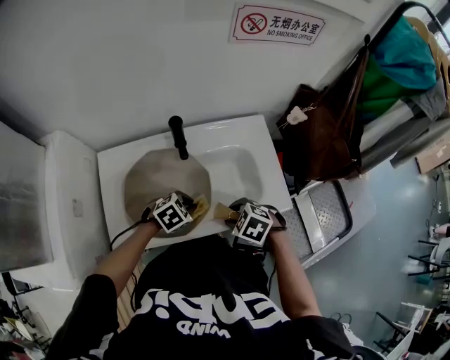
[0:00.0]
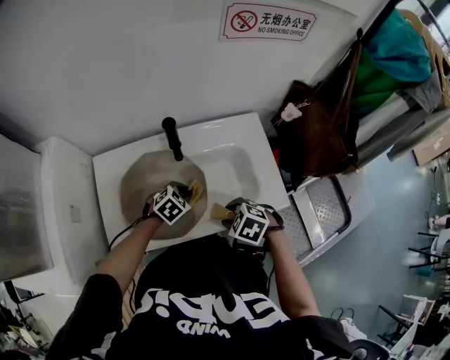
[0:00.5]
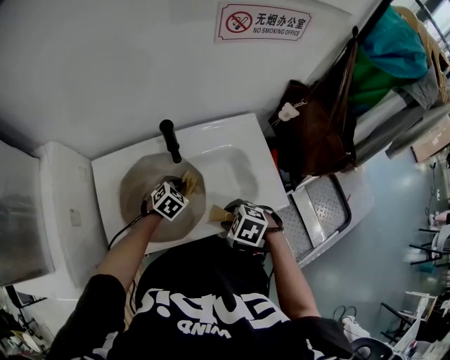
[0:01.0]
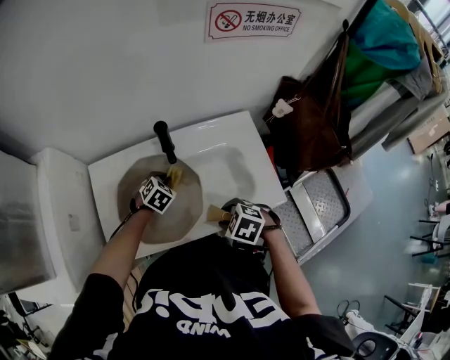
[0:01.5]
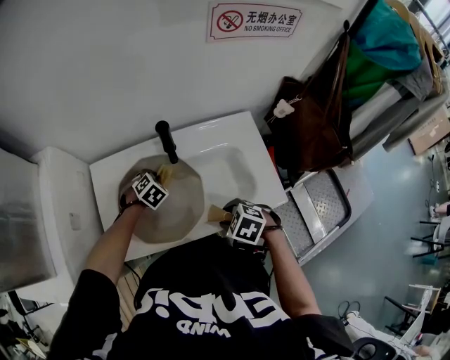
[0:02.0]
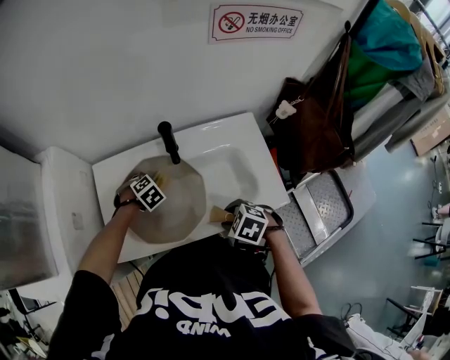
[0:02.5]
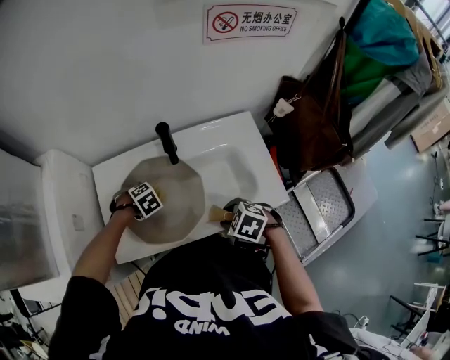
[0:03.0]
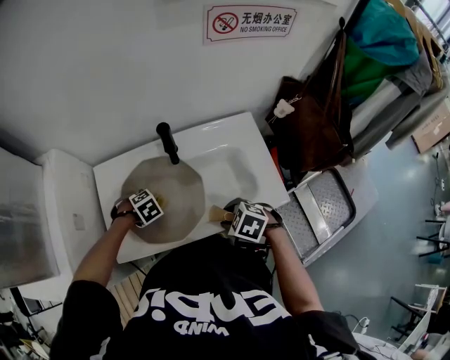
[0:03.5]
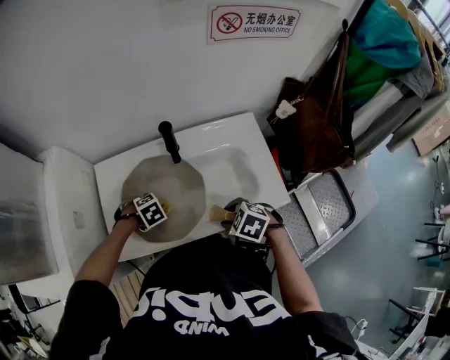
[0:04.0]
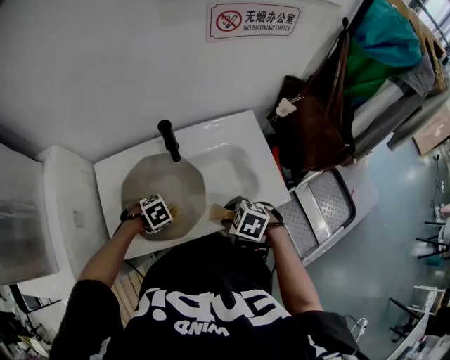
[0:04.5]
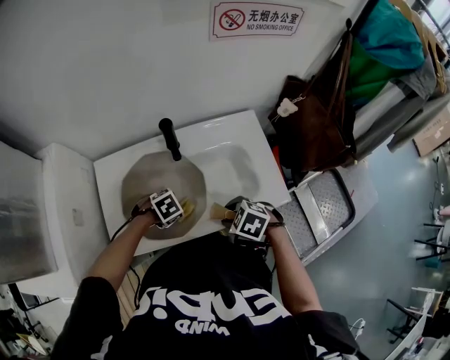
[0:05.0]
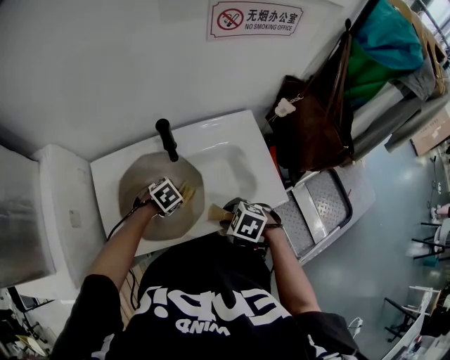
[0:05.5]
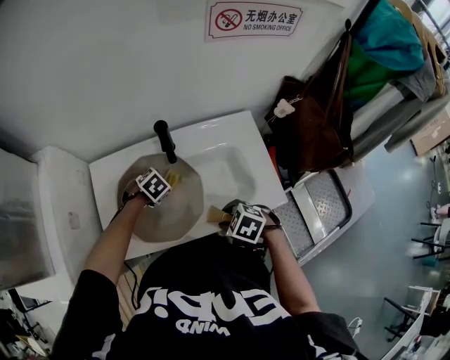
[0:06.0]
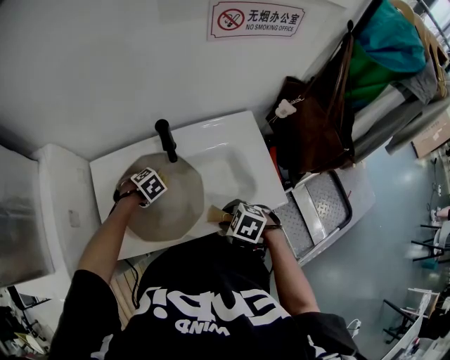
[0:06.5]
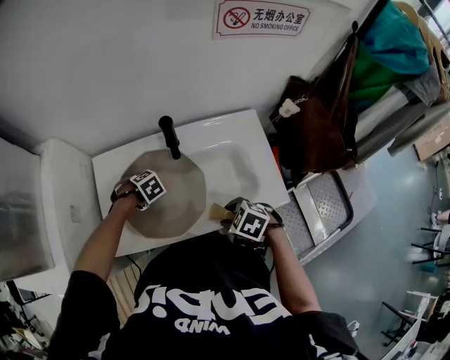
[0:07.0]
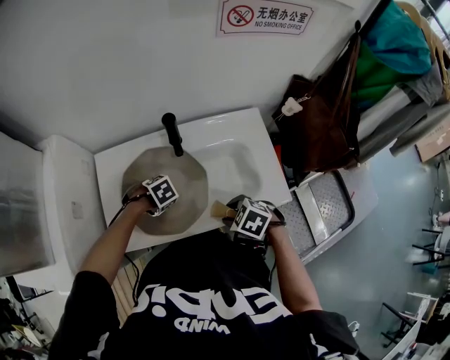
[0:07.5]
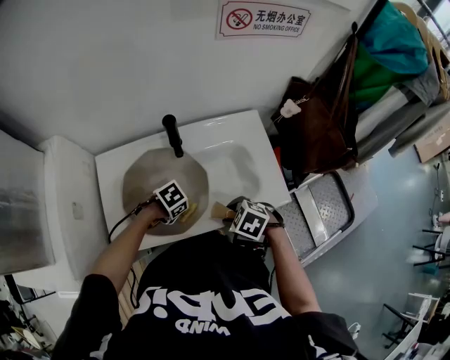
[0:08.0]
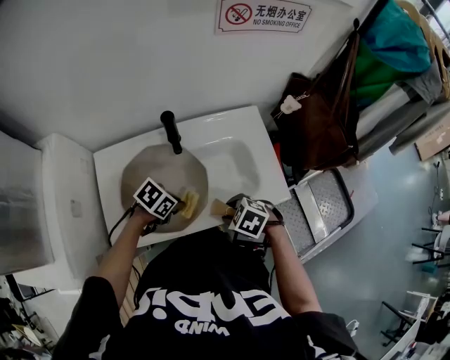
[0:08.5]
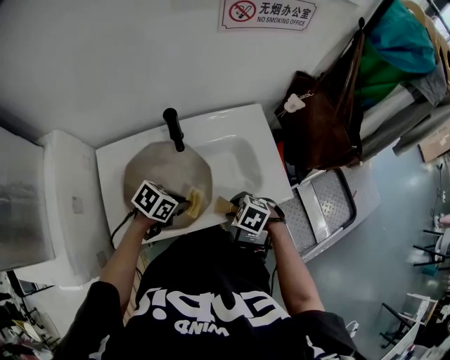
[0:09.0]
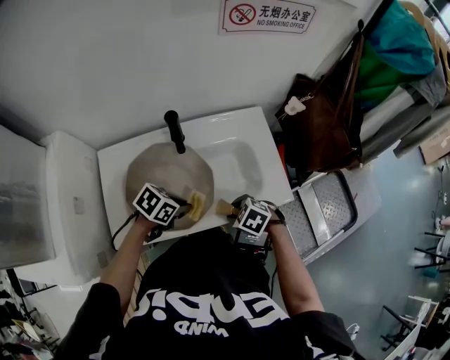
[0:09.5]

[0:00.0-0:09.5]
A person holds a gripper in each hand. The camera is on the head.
0:00.0 to 0:02.0: The left gripper moves approximately 15 cm, and turns by approximately 30 degrees.
0:02.0 to 0:04.0: The left gripper changes place by roughly 15 cm, and turns by some 30 degrees.
0:04.0 to 0:05.5: The left gripper ends up about 10 cm from where it was.
0:07.5 to 0:09.5: The left gripper ends up some 15 cm from where it was, and tilts its fingers some 30 degrees upward.

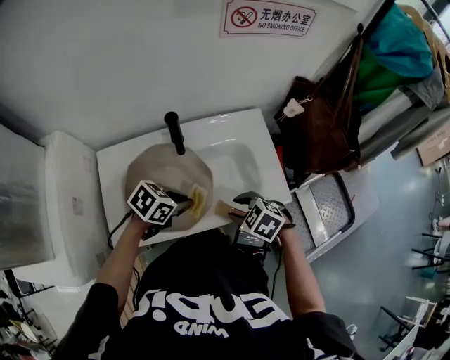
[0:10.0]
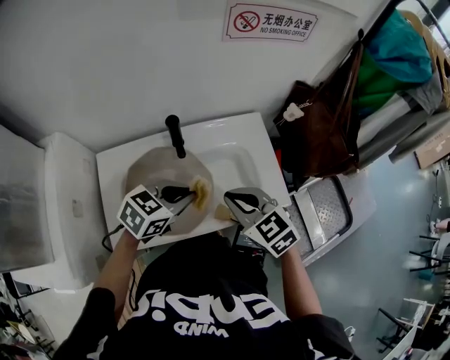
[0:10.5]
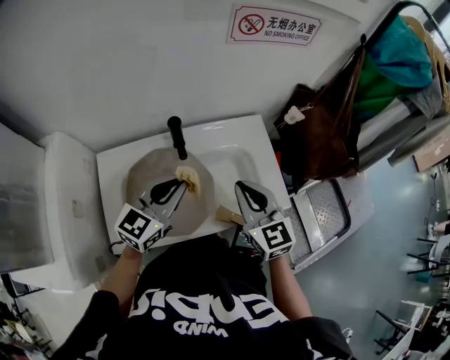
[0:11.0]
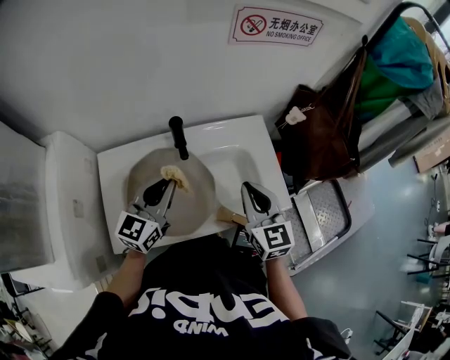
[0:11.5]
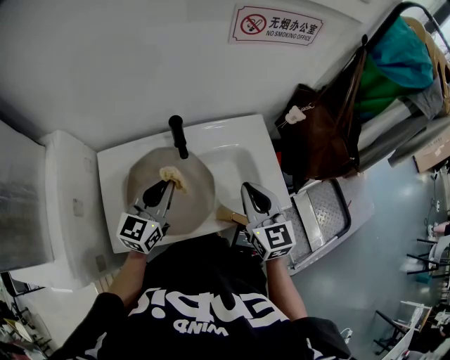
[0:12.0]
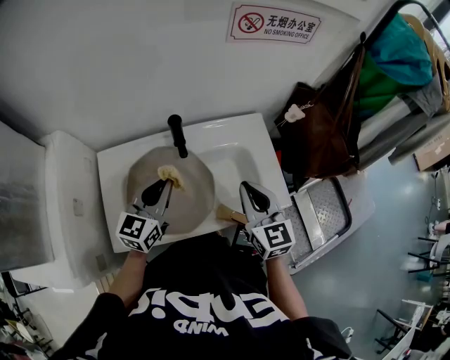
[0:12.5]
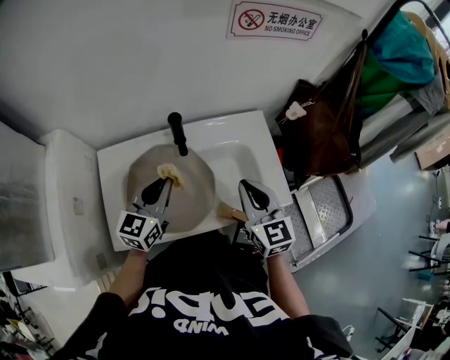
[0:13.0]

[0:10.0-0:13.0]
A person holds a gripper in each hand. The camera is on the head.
0:10.0 to 0:11.5: The two grippers go roughly 15 cm upward. The left gripper tips its fingers upward by approximately 40 degrees; the right gripper angles its fingers upward, by roughly 50 degrees, and closes.
0:11.5 to 0:13.0: The grippers move only a little.

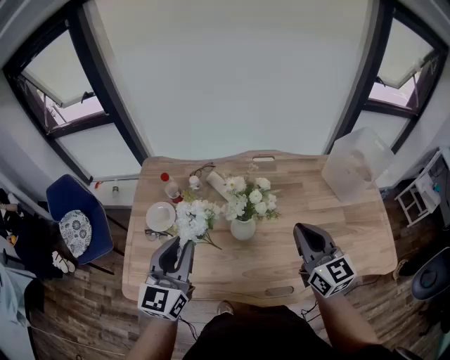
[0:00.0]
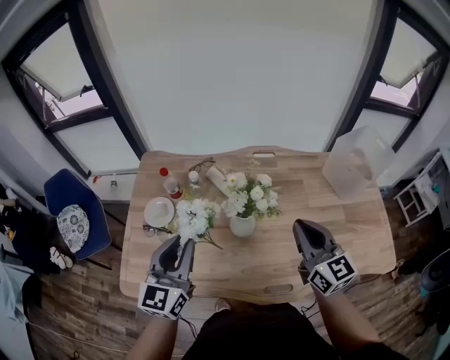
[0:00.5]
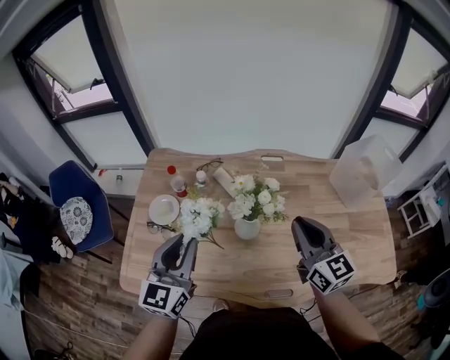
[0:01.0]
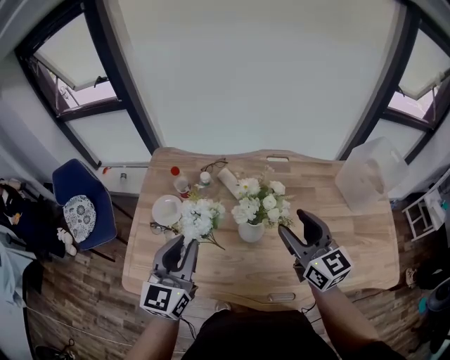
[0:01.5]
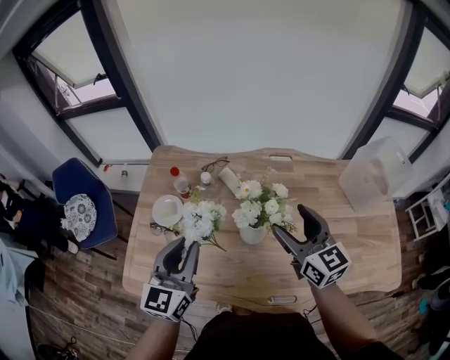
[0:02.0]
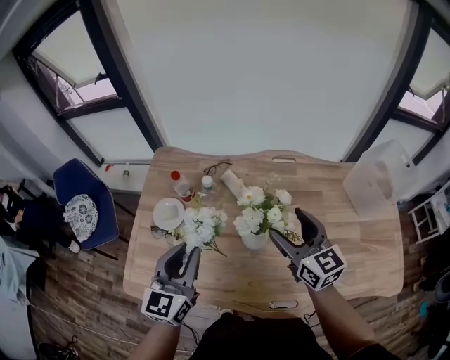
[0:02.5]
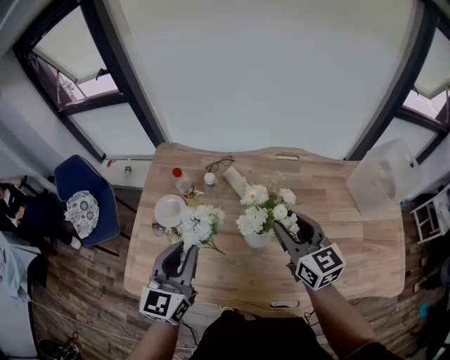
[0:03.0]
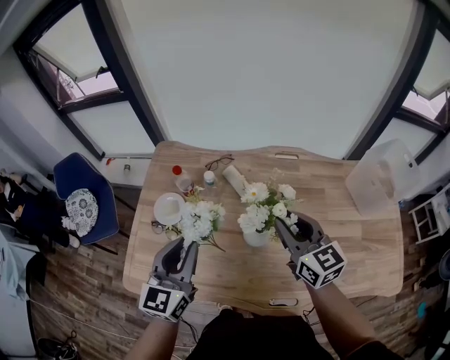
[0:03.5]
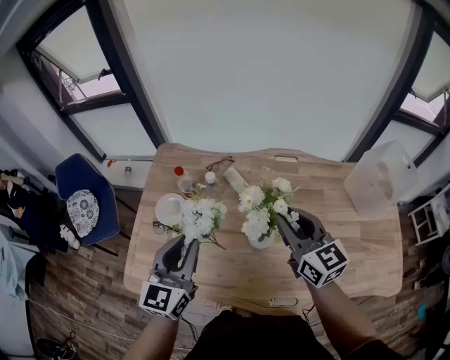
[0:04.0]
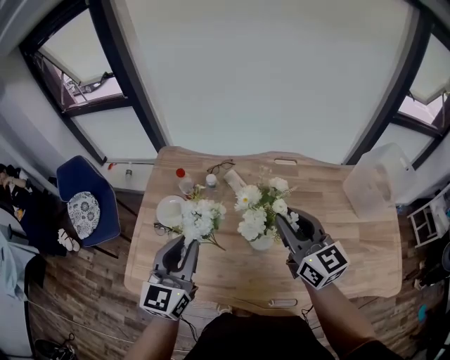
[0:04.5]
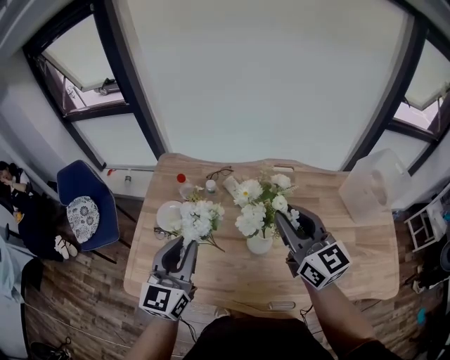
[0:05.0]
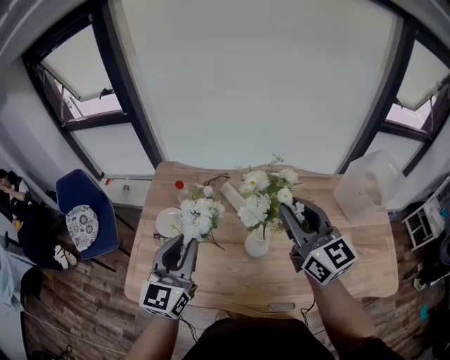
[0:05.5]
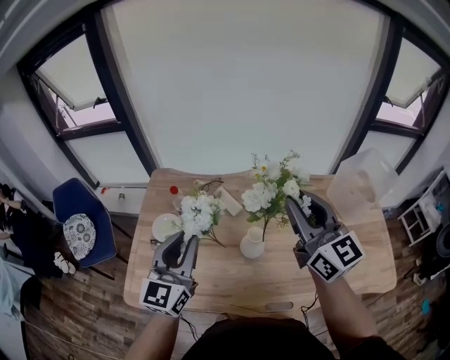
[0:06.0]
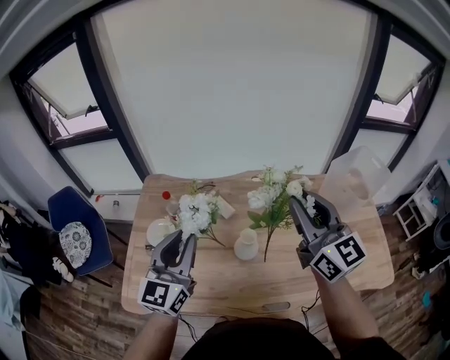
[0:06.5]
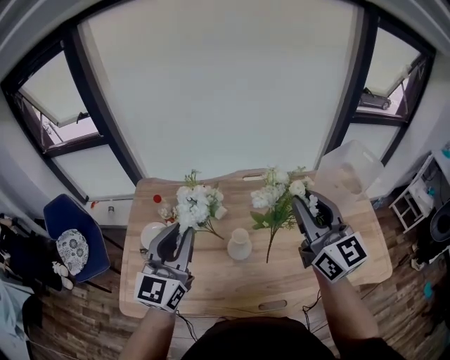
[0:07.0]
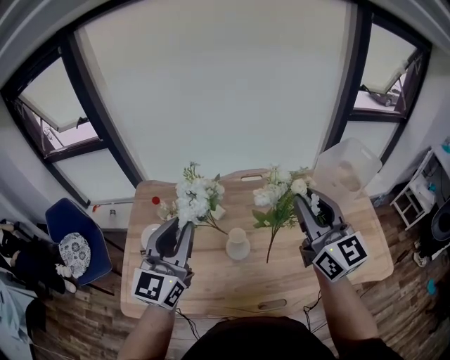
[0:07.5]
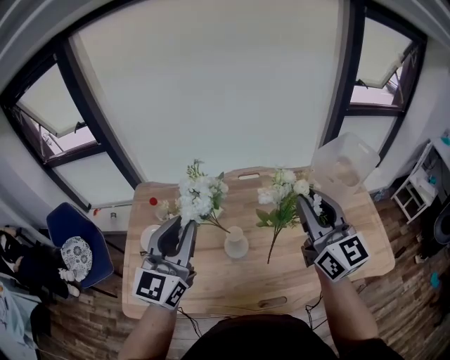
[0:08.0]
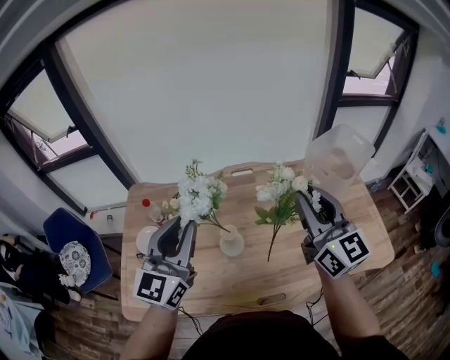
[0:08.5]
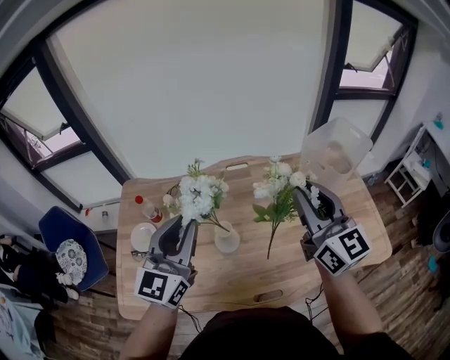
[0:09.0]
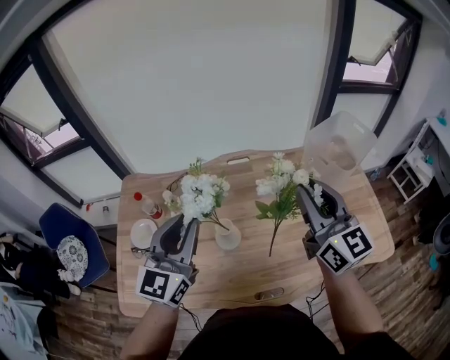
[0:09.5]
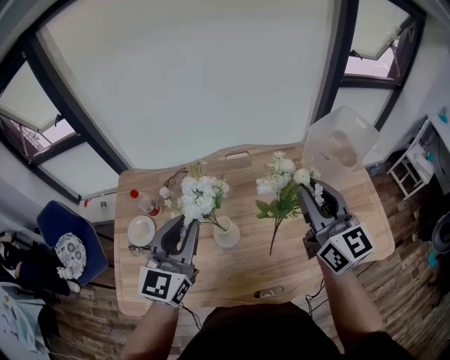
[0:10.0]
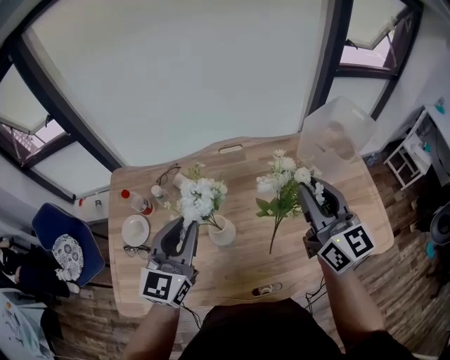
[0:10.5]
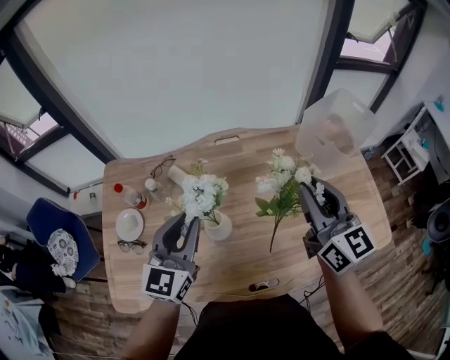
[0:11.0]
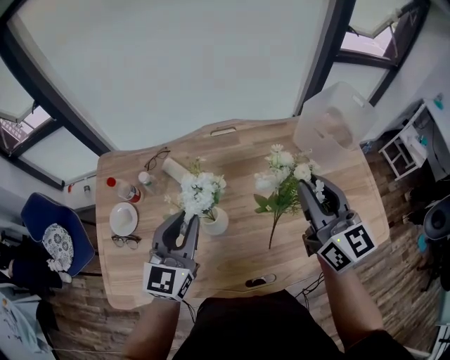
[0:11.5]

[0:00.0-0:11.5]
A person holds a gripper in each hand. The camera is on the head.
0:00.0 to 0:02.0: The right gripper is displaced forward and to the left by some 10 cm, and opens up.
0:02.0 to 0:04.0: The right gripper closes.
0:04.0 to 0:06.0: The right gripper moves upward, some 15 cm. Meanwhile the left gripper is displaced upward by about 5 cm.
0:06.0 to 0:07.5: The left gripper moves to the right and upward, some 10 cm. The right gripper travels to the right by about 10 cm.
0:07.5 to 0:09.5: The left gripper ends up about 5 cm from where it was.
0:09.5 to 0:11.5: The left gripper travels downward by roughly 10 cm; the right gripper heads downward, covering approximately 5 cm.

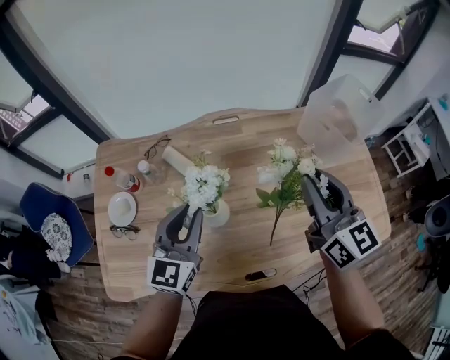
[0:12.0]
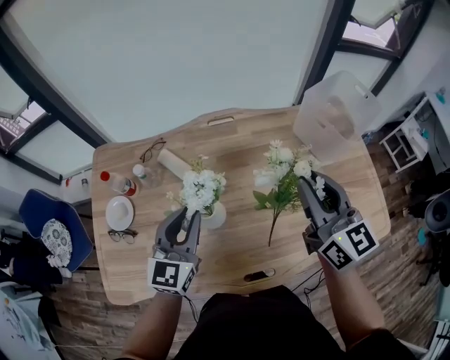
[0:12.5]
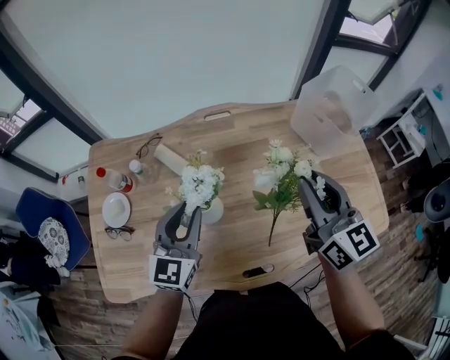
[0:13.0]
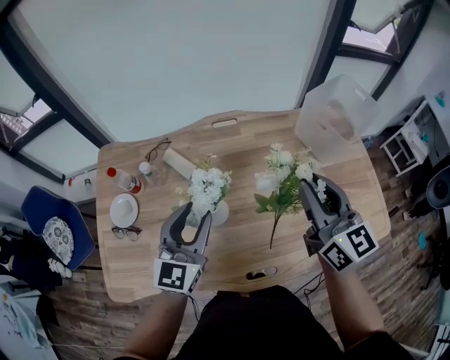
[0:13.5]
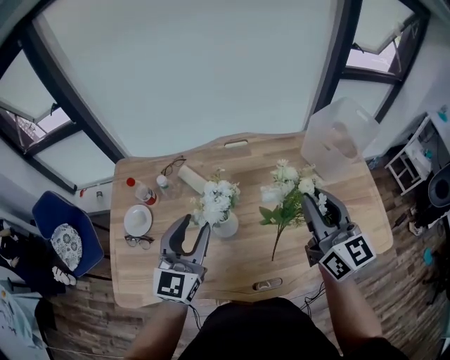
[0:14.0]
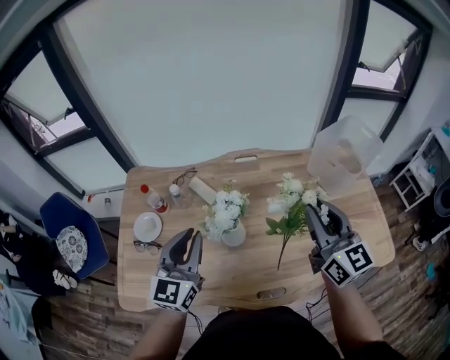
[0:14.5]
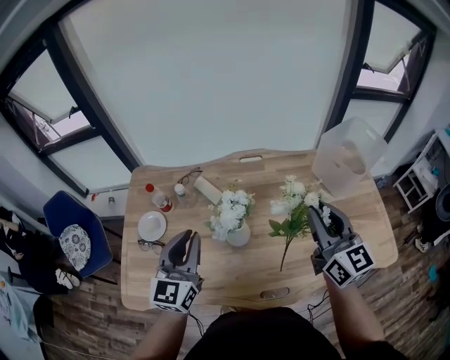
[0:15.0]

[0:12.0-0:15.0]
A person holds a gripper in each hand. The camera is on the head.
0:12.0 to 0:13.5: The grippers stay close to where they were, moving slightly.
0:13.5 to 0:15.0: The left gripper moves to the left, about 10 cm, and closes its fingers.
